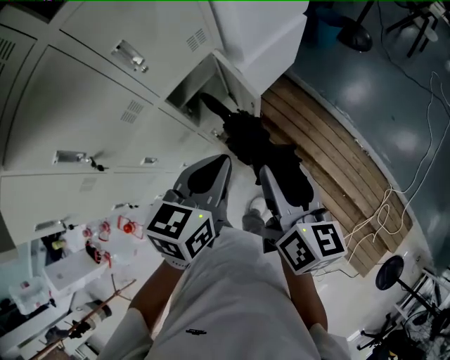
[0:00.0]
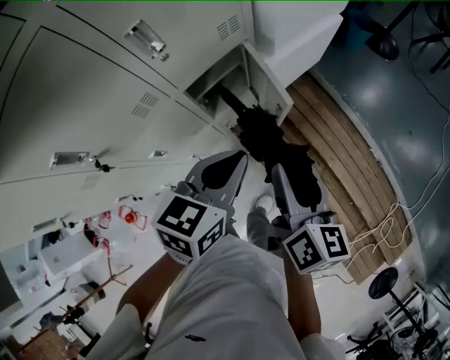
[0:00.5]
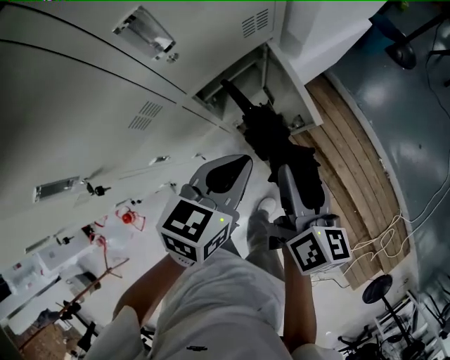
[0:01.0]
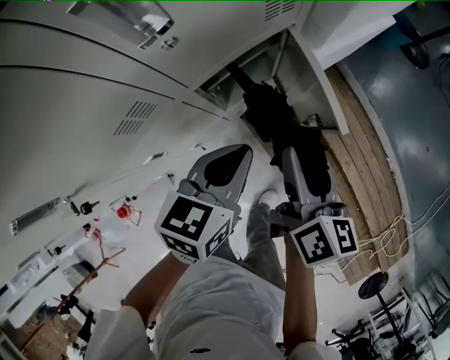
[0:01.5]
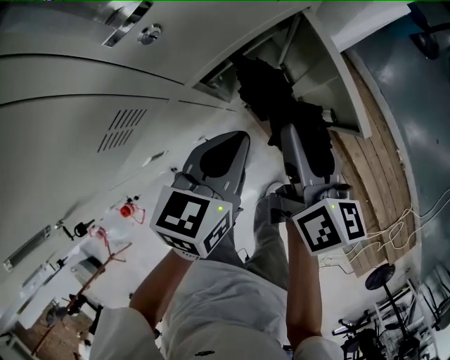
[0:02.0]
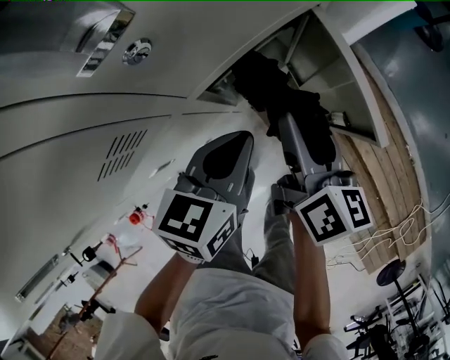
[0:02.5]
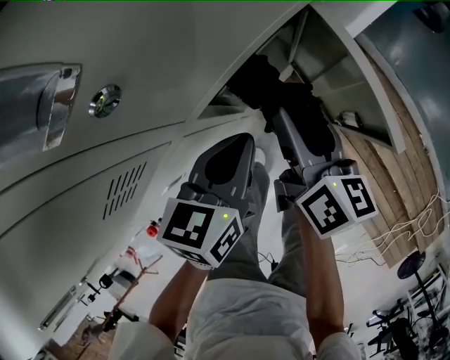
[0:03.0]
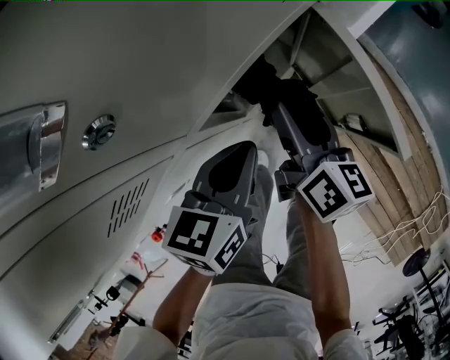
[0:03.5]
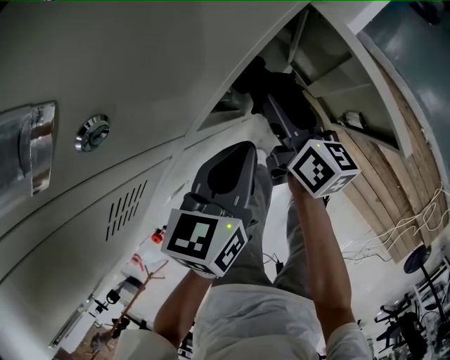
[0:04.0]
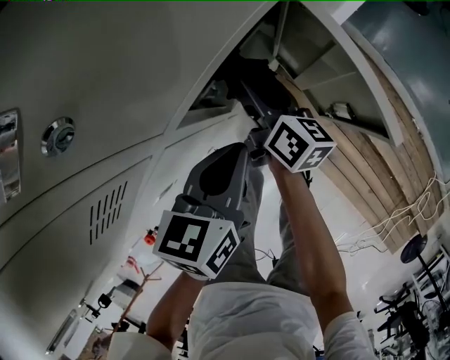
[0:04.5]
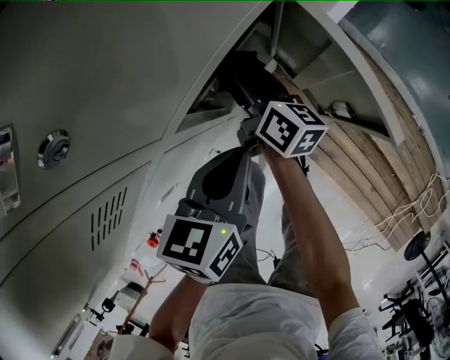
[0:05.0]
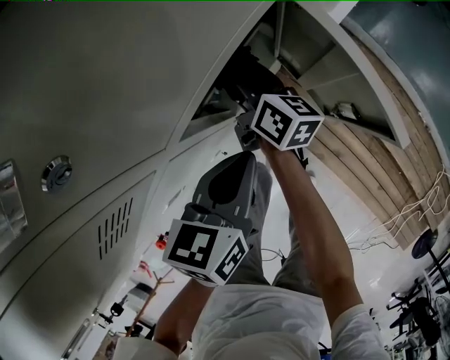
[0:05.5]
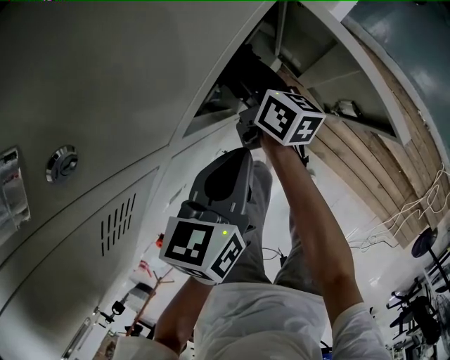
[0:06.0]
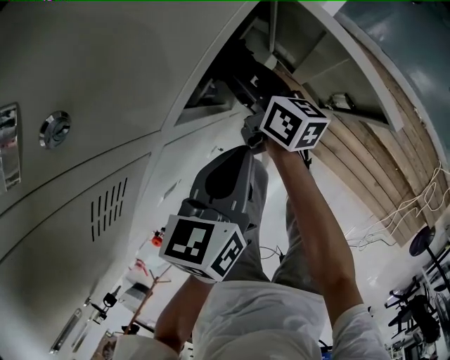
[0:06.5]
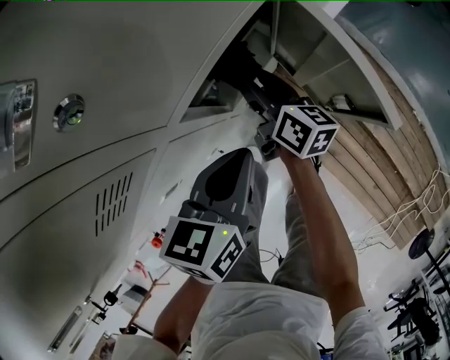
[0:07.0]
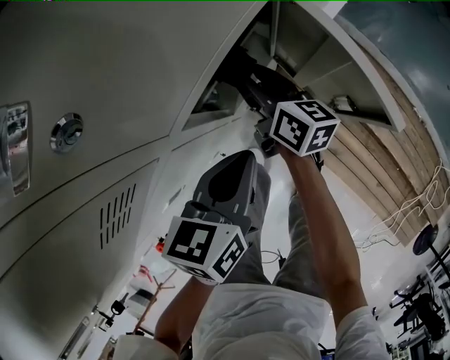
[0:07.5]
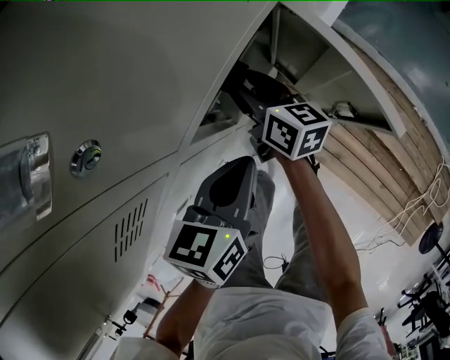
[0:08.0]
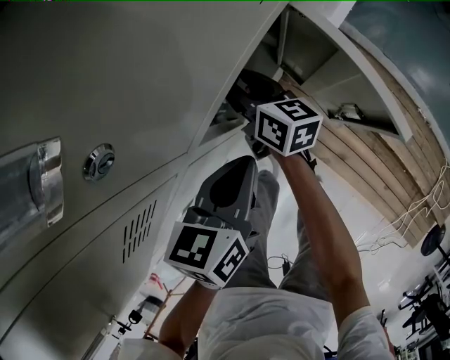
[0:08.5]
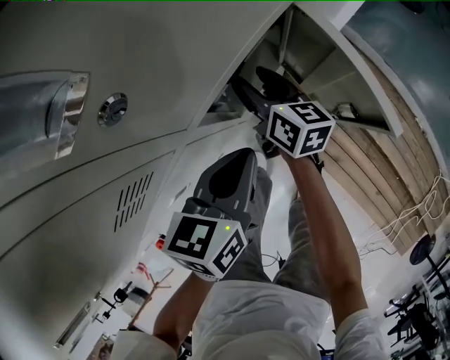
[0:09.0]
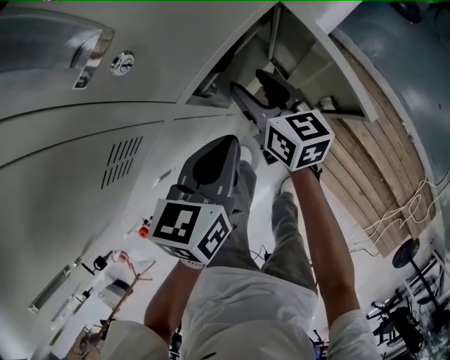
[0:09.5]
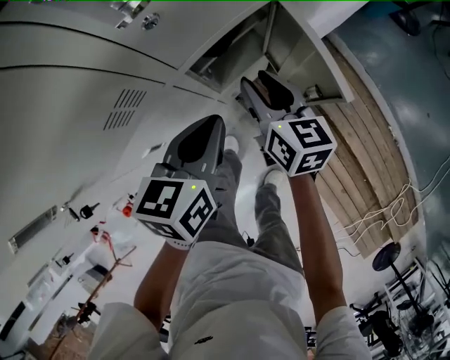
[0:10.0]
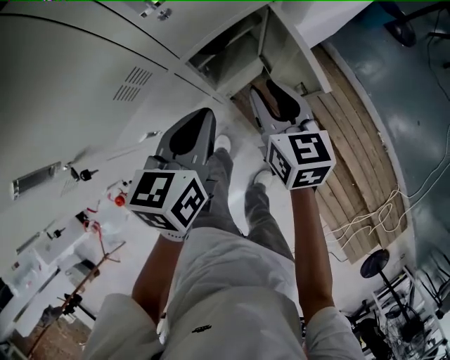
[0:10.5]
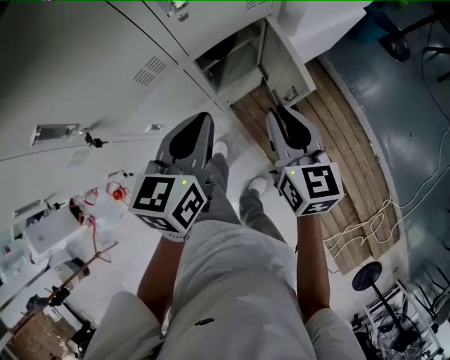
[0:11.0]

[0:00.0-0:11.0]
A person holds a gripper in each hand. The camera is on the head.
0:00.0 to 0:02.0: The right gripper is displaced forward, downward and to the left by some 30 cm, while the left gripper heads downward, to the left and forward, covering some 25 cm.
0:02.0 to 0:03.5: The right gripper heads downward, forward and to the left, covering some 10 cm, while the left gripper moves some 5 cm.
0:03.5 to 0:05.5: The right gripper goes some 15 cm forward, downward and to the left.
0:05.5 to 0:09.0: The grippers move only a little.
0:09.0 to 0:11.0: The left gripper is displaced upward and backward by some 20 cm, and changes its angle by roughly 20 degrees, while the right gripper heads backward, upward and to the right, covering approximately 35 cm, turns by roughly 30 degrees, and closes its fingers.

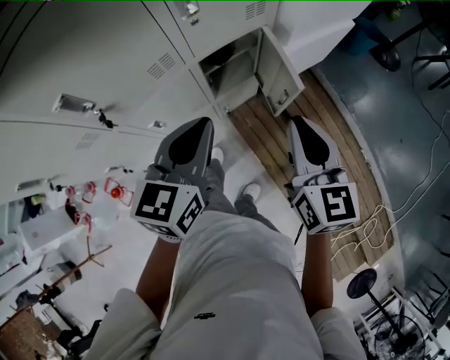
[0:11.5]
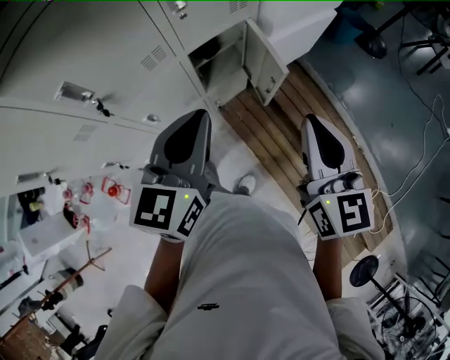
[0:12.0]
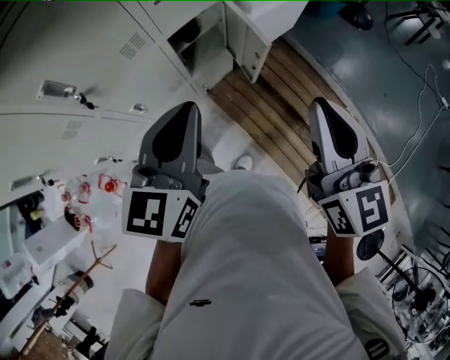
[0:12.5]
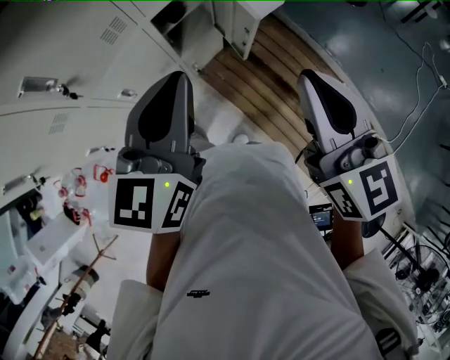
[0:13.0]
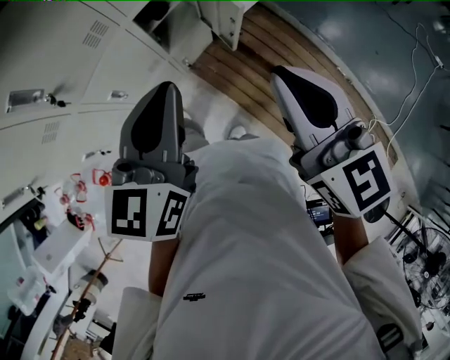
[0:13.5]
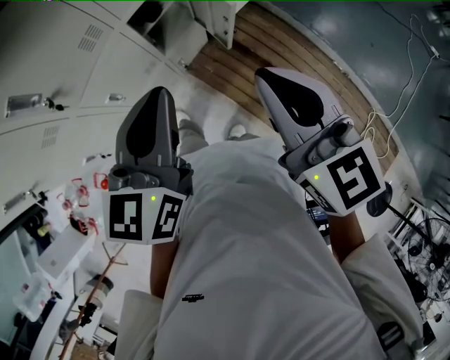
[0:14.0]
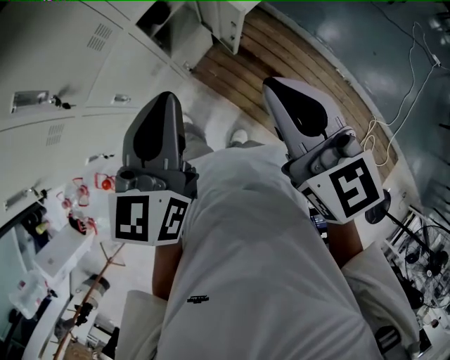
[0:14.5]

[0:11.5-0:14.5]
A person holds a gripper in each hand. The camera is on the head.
0:11.5 to 0:13.0: Both grippers move backward and upward, some 10 cm.
0:13.0 to 0:14.5: There are only small adjustments of the grippers.

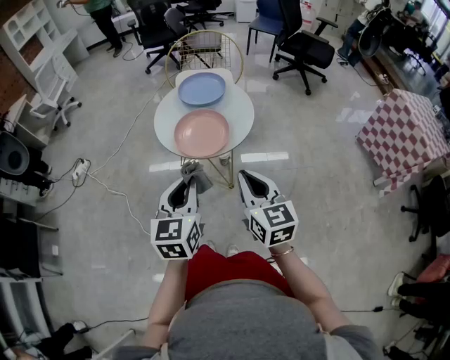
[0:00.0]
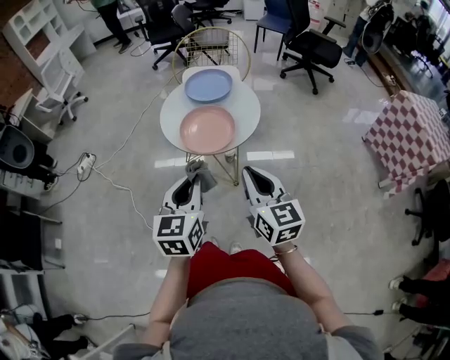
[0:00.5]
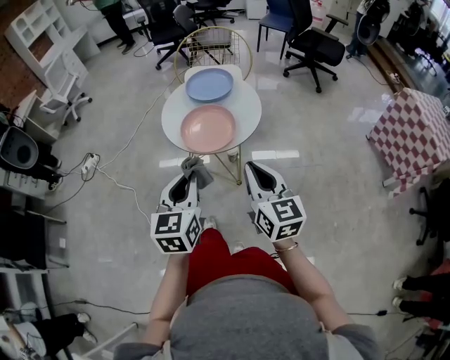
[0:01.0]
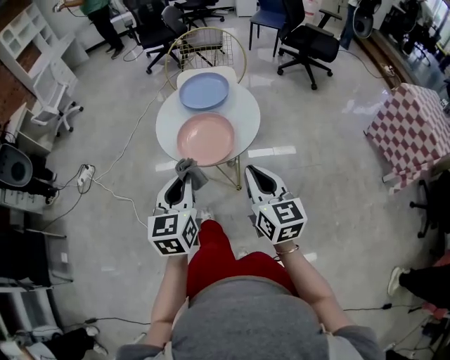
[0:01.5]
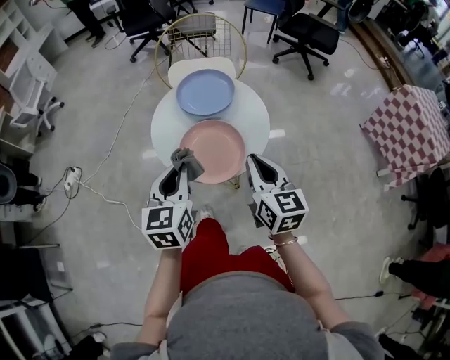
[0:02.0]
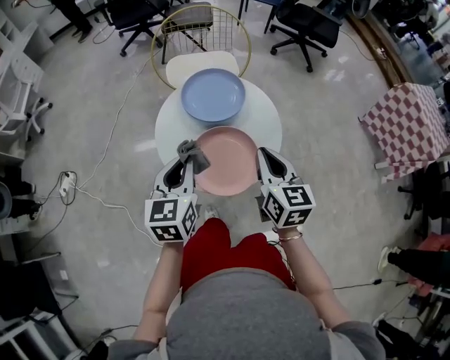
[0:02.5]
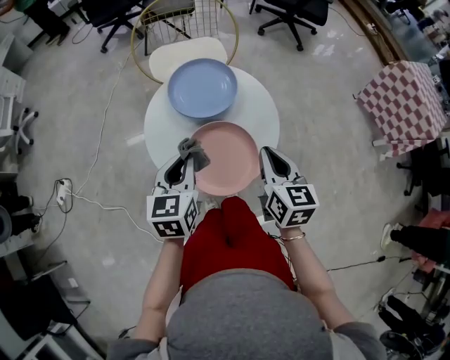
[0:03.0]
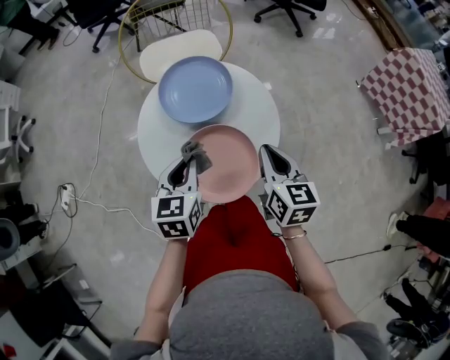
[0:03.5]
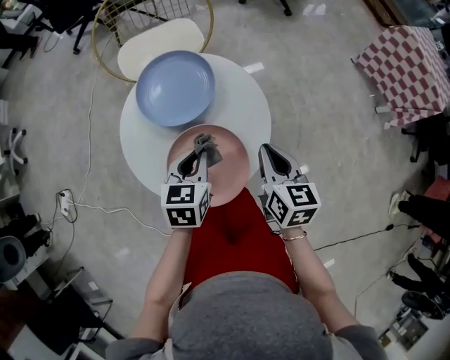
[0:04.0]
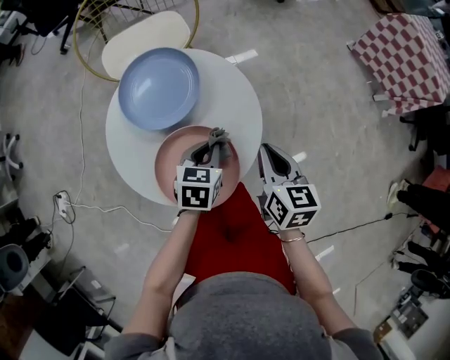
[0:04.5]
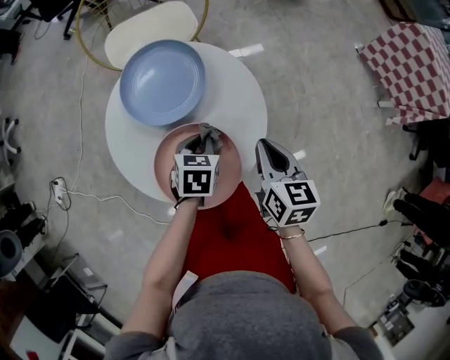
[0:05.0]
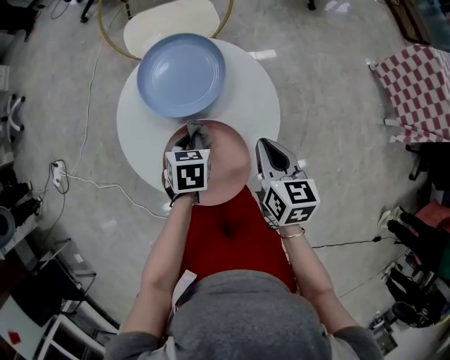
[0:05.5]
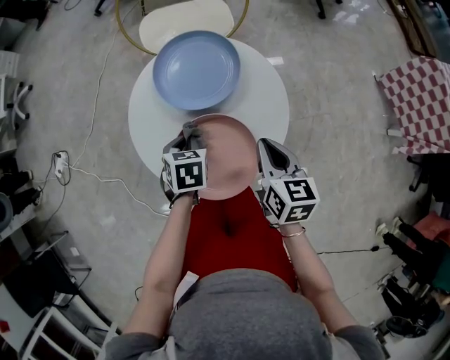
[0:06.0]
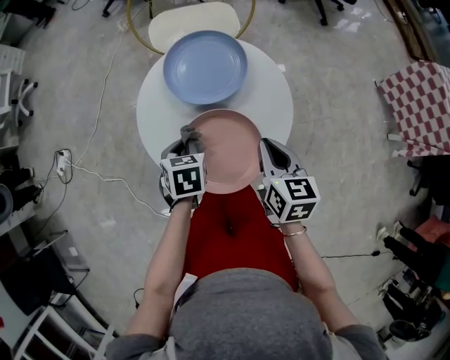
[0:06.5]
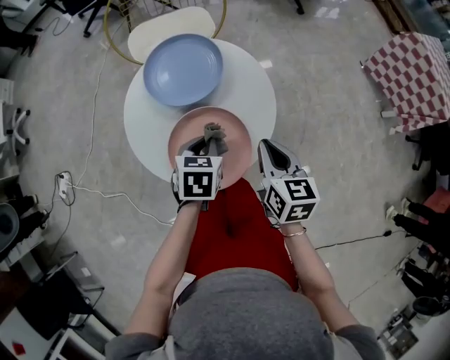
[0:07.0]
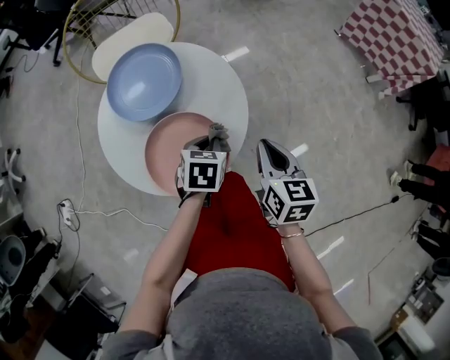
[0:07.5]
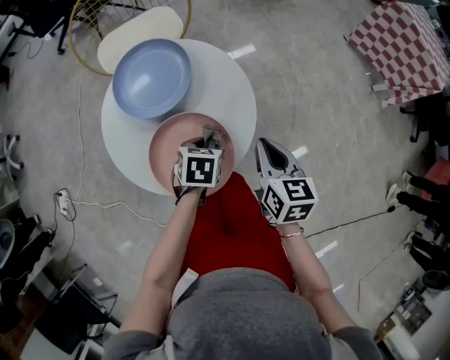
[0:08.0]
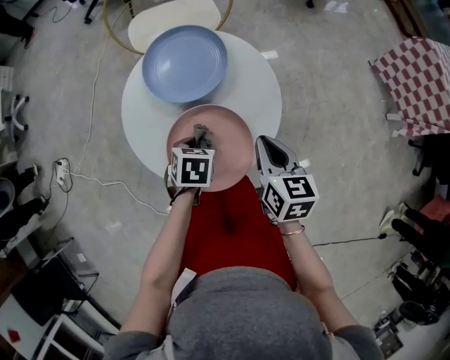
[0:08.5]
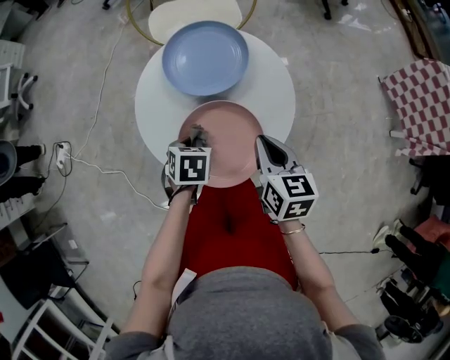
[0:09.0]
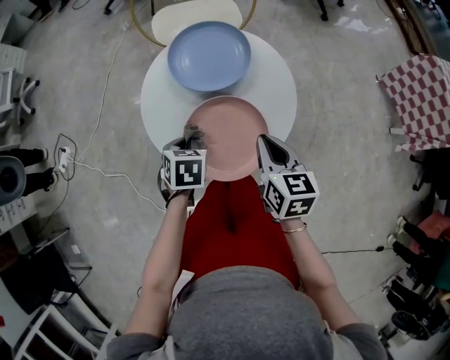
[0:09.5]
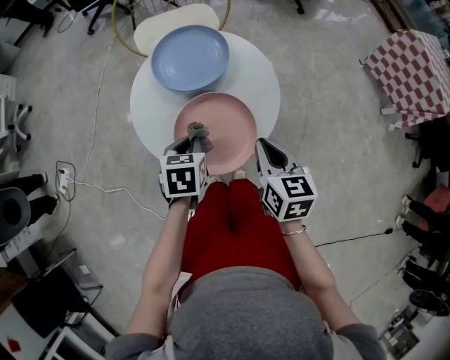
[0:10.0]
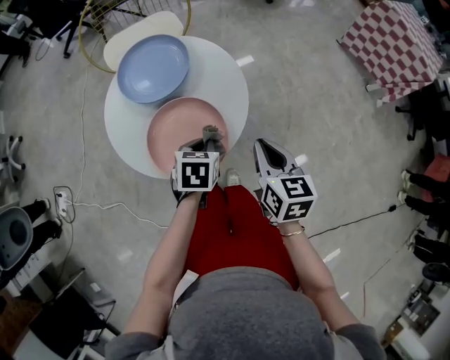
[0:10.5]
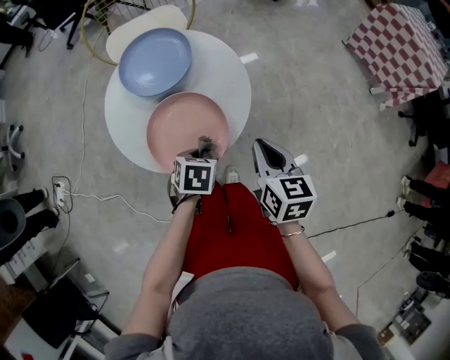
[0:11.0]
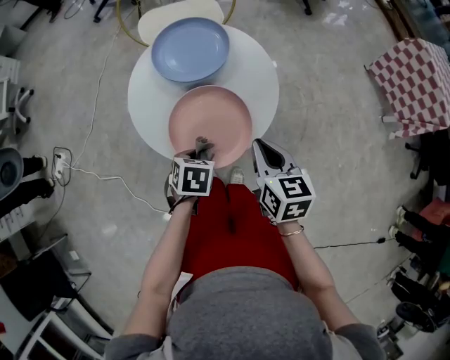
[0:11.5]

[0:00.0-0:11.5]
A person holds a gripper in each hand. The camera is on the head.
0:00.0 to 0:02.0: The grippers both shift forward by about 20 cm.
0:02.0 to 0:04.0: The two grippers go about 20 cm forward and downward. The left gripper turns by about 30 degrees, while the right gripper rotates some 30 degrees.
0:04.0 to 0:06.0: The left gripper shifts roughly 10 cm downward, and turns by approximately 30 degrees.
0:06.0 to 0:07.5: The right gripper moves some 10 cm. The left gripper changes place by some 15 cm, and rotates some 30 degrees.
0:07.5 to 0:09.5: The left gripper shifts by about 20 cm, and changes its angle by roughly 30 degrees. The right gripper changes place by some 10 cm, and changes its angle by some 20 degrees.

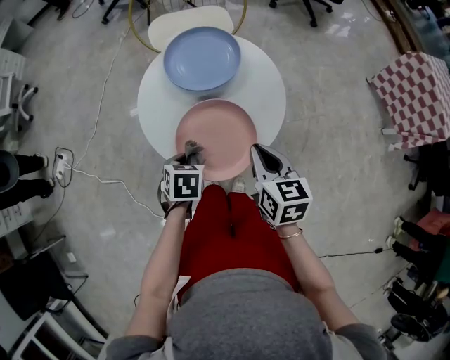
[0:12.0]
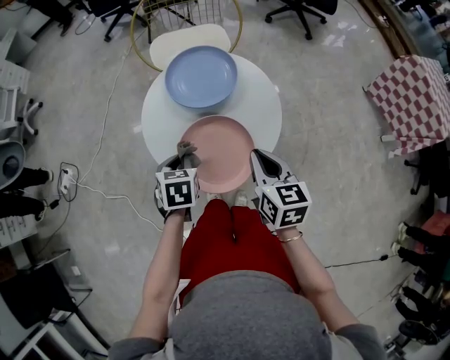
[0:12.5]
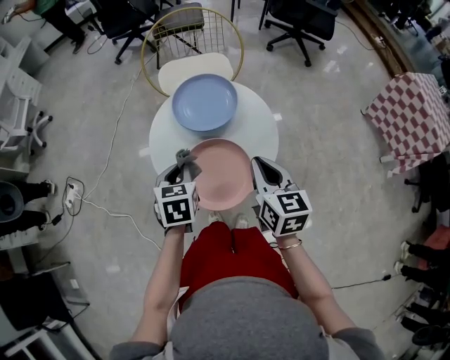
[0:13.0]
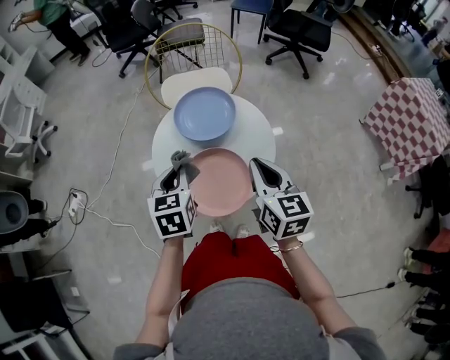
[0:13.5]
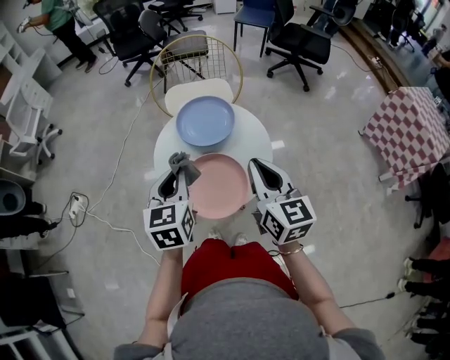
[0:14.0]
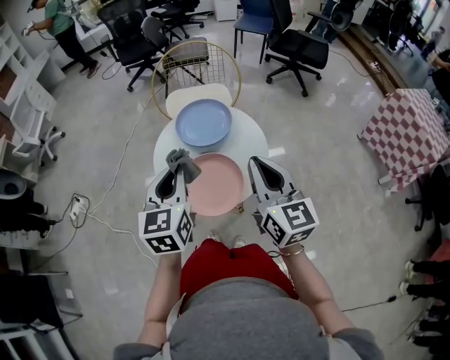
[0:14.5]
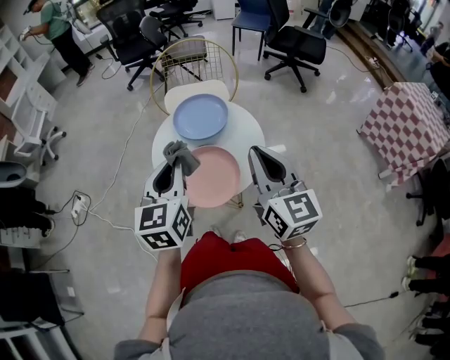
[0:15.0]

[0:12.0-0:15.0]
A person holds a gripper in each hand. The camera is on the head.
0:12.0 to 0:13.5: The right gripper heads upward, covering about 10 cm. The left gripper travels upward by approximately 20 cm, and angles its fingers upward, by some 30 degrees.
0:13.5 to 0:15.0: Both grippers move upward and backward, some 15 cm. The left gripper swivels approximately 20 degrees.
